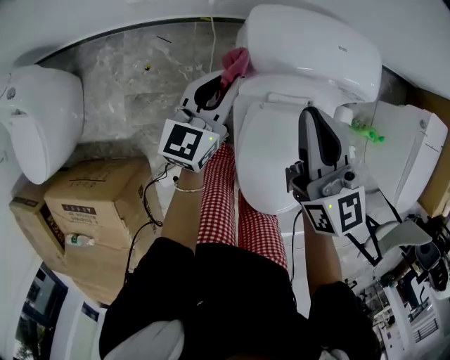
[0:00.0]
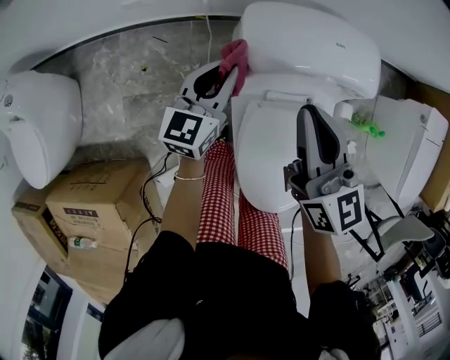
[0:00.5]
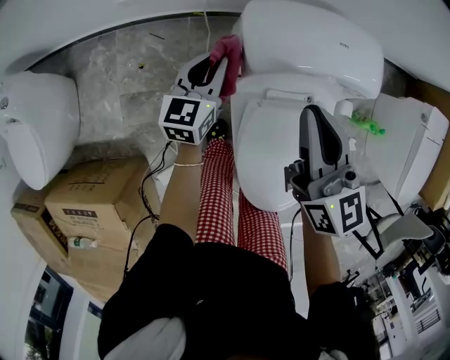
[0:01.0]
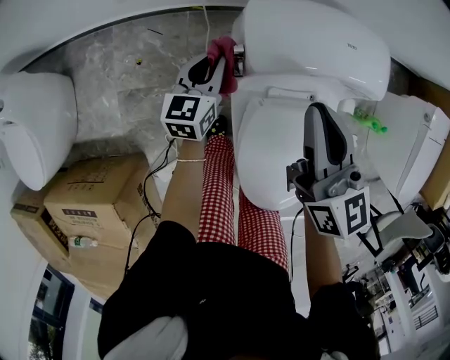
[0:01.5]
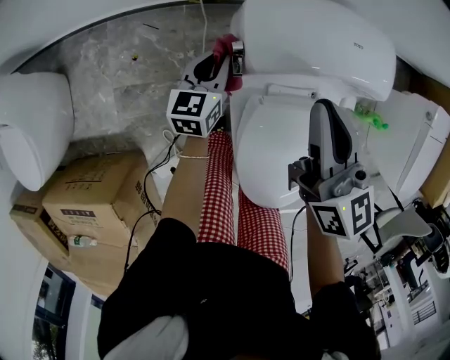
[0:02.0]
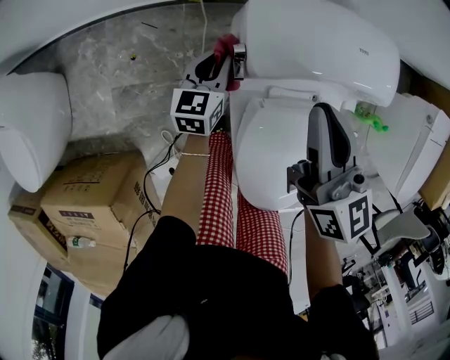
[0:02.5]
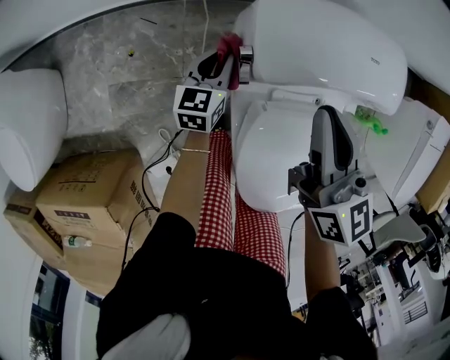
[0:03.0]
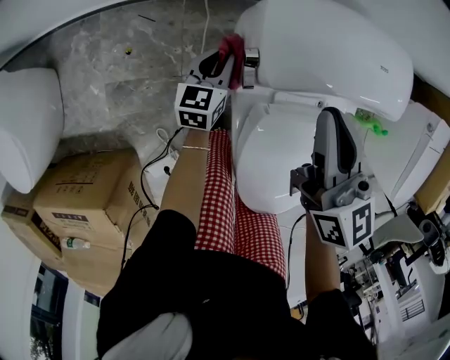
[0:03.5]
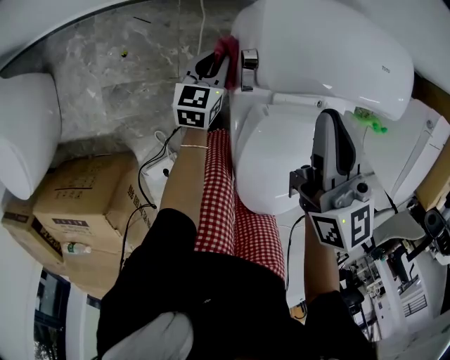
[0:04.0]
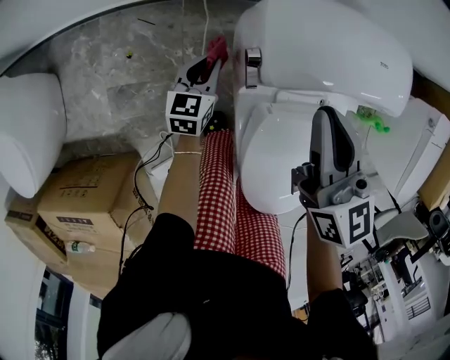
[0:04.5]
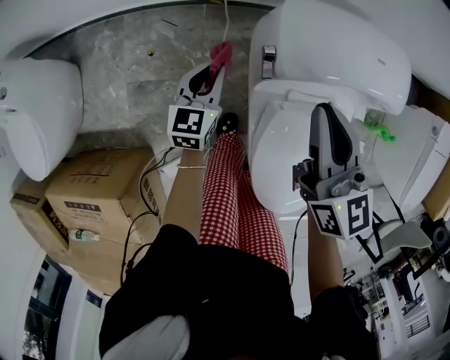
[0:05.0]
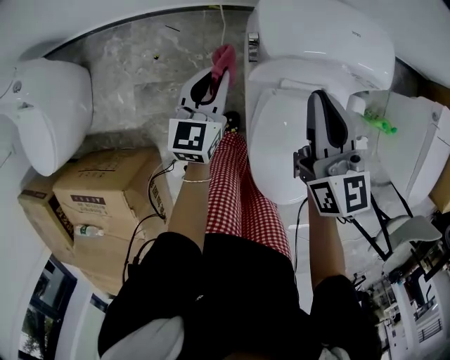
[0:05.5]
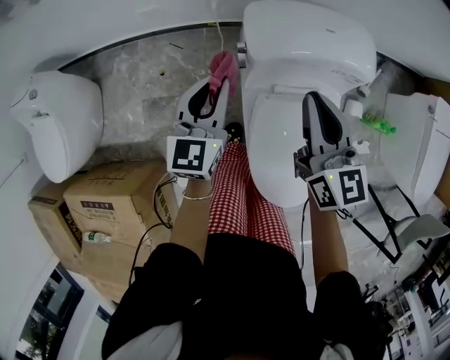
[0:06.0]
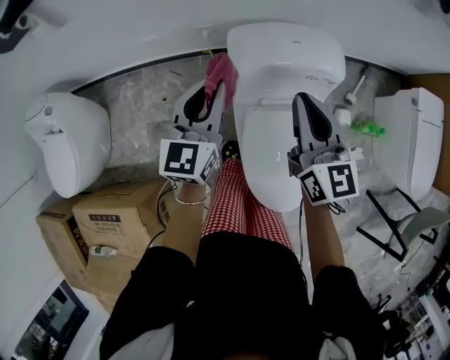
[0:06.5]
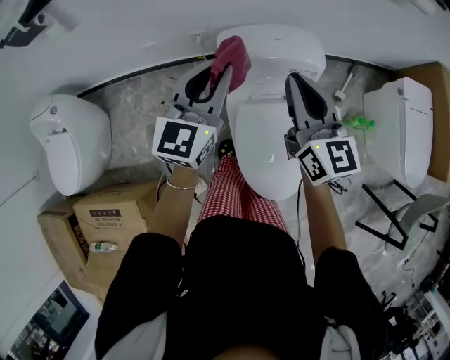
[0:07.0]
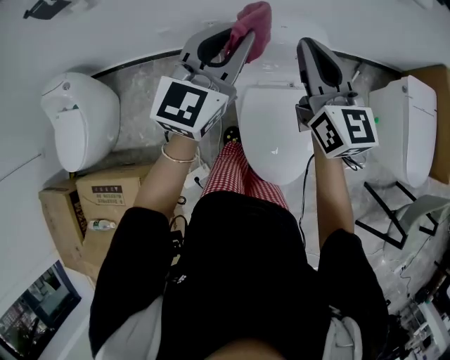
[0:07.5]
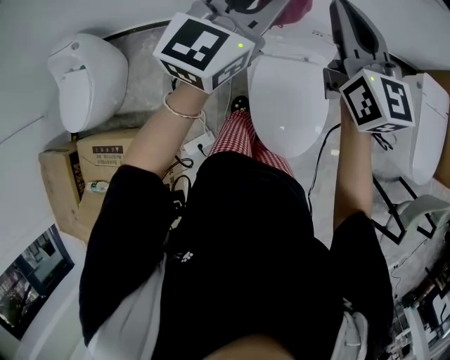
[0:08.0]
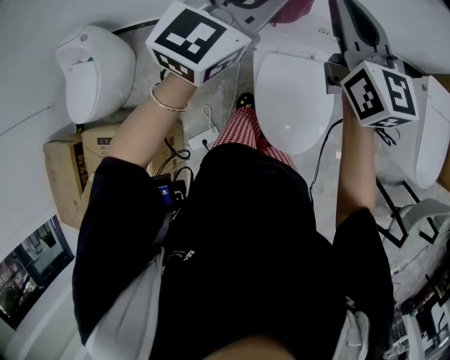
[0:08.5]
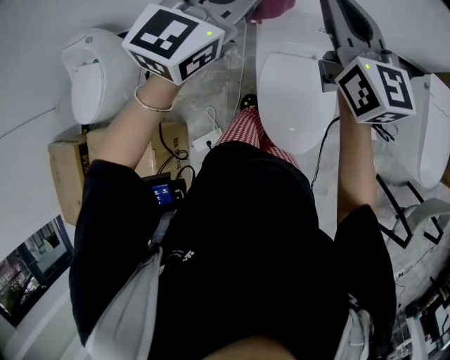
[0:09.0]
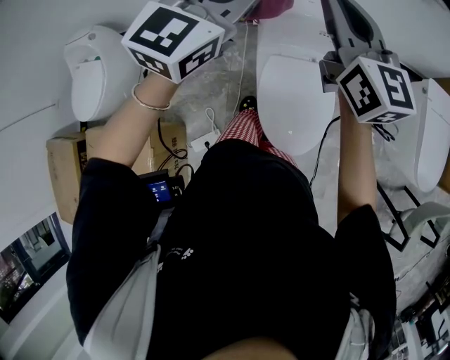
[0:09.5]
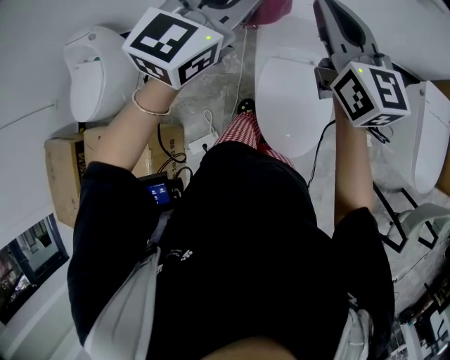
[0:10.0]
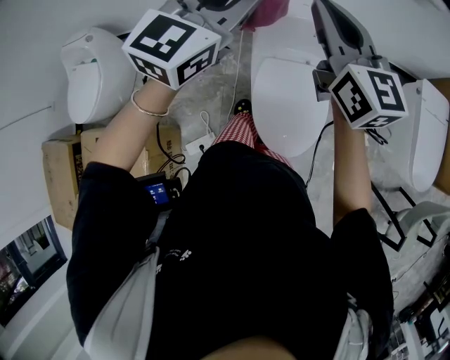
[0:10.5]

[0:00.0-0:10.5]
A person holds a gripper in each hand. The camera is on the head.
0:00.0 to 0:02.0: The right gripper moves some 5 cm, while the left gripper shifts some 15 cm downward.
0:02.0 to 0:04.0: The right gripper moves some 5 cm. The left gripper moves downward, approximately 10 cm.
0:04.0 to 0:06.5: The right gripper is displaced upward and backward by approximately 20 cm. The left gripper goes roughly 40 cm upward, and changes its angle by approximately 30 degrees.
0:06.5 to 0:08.5: The right gripper shifts some 20 cm upward; the left gripper is displaced upward, to the right and backward by about 25 cm, and changes its angle by roughly 30 degrees.
0:08.5 to 0:10.5: The grippers stay close to where they were, moving slightly.

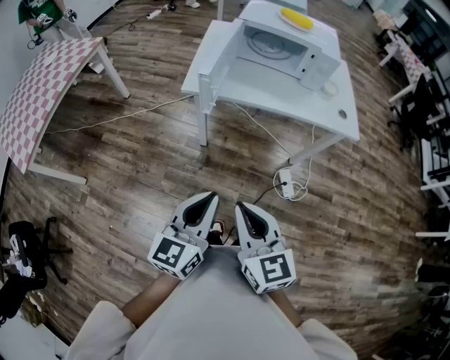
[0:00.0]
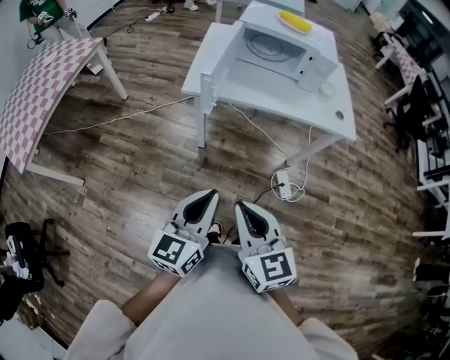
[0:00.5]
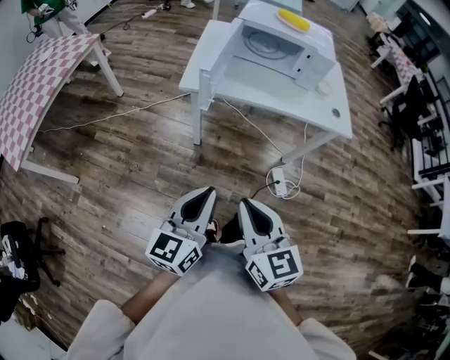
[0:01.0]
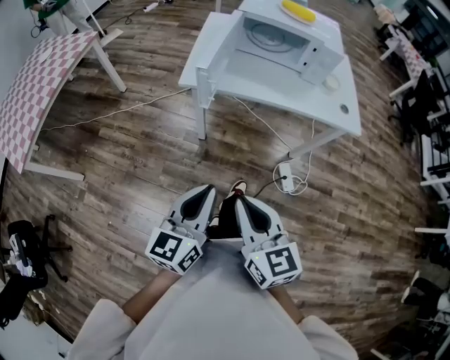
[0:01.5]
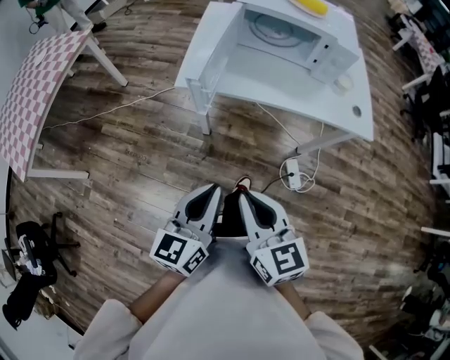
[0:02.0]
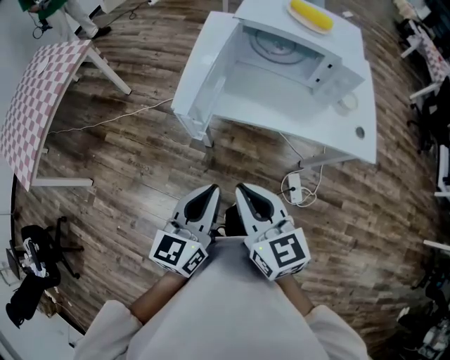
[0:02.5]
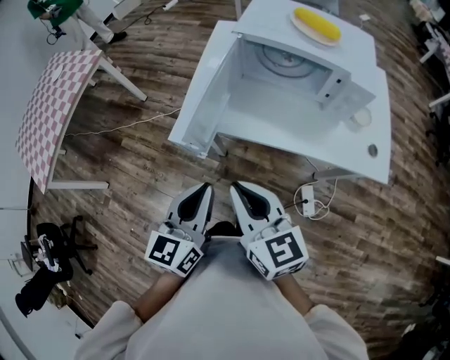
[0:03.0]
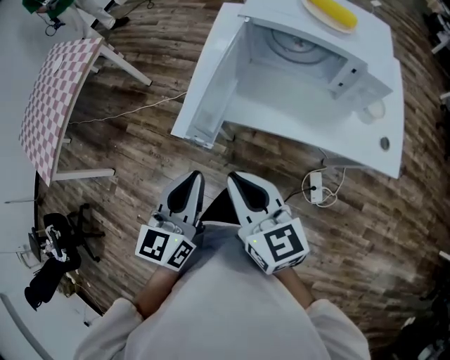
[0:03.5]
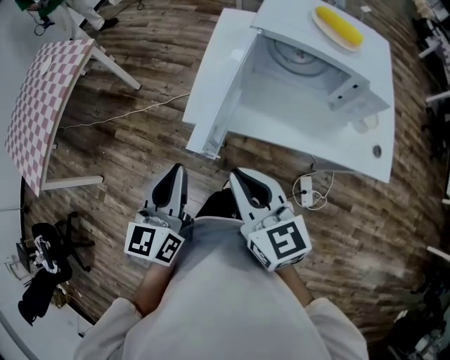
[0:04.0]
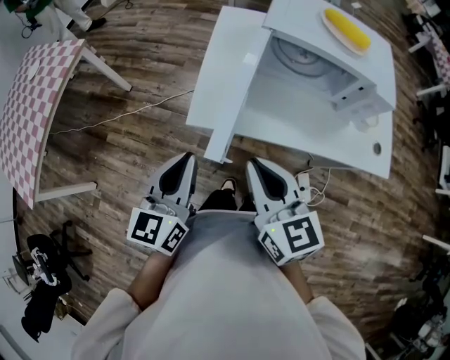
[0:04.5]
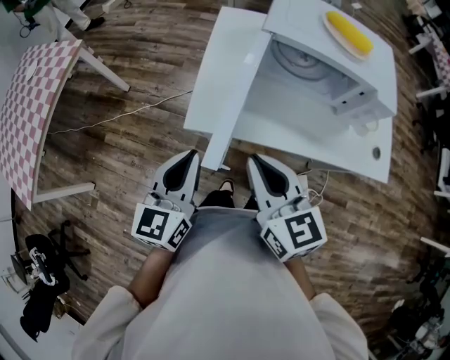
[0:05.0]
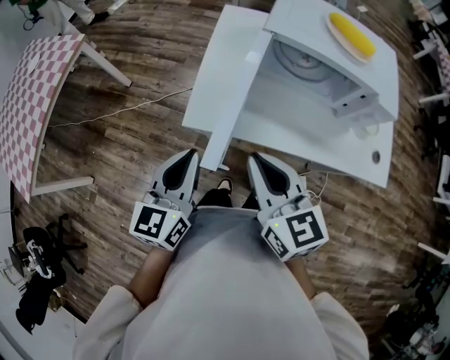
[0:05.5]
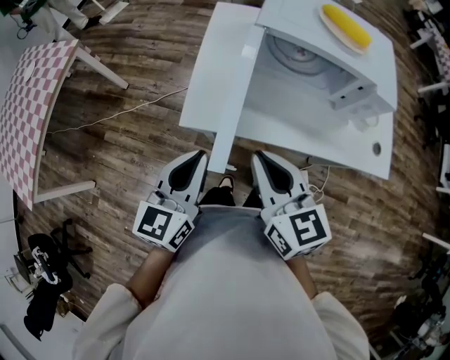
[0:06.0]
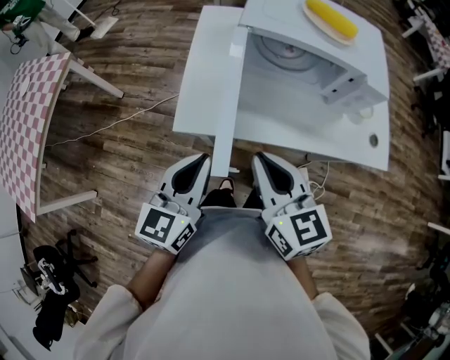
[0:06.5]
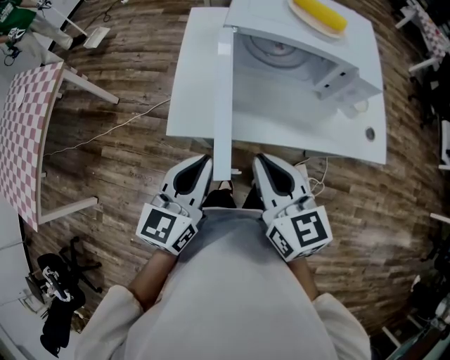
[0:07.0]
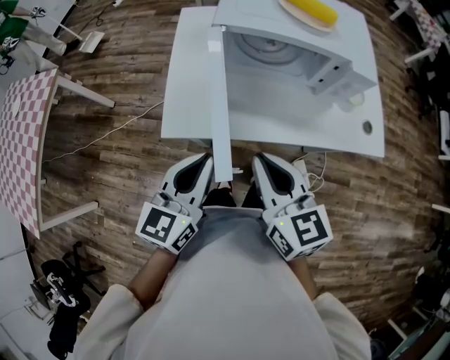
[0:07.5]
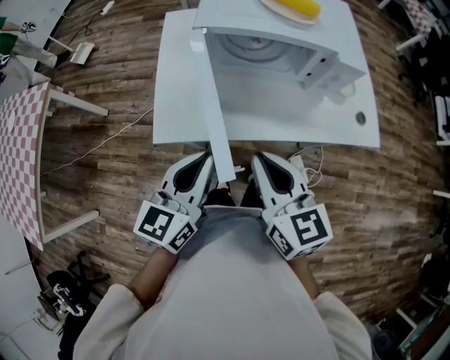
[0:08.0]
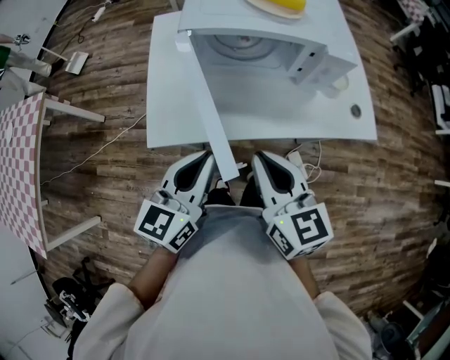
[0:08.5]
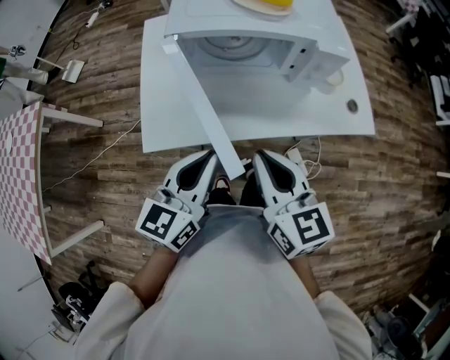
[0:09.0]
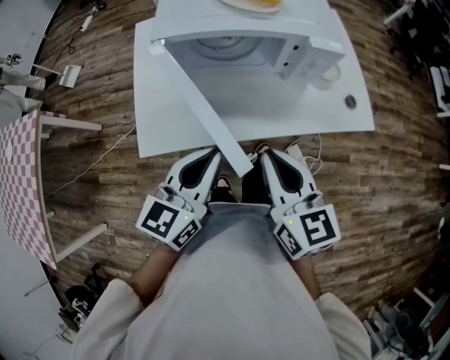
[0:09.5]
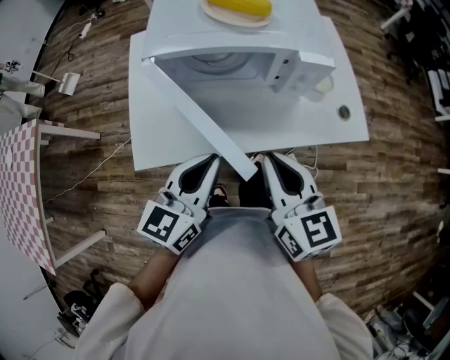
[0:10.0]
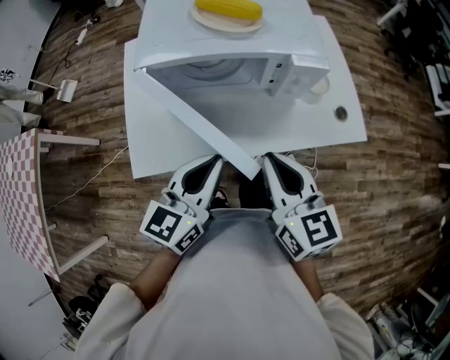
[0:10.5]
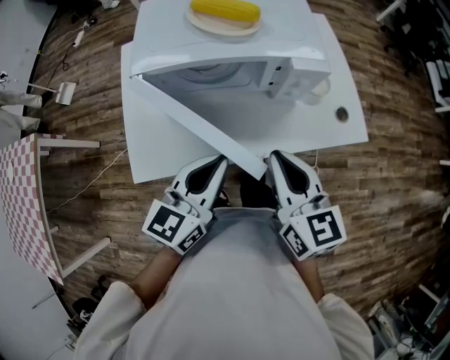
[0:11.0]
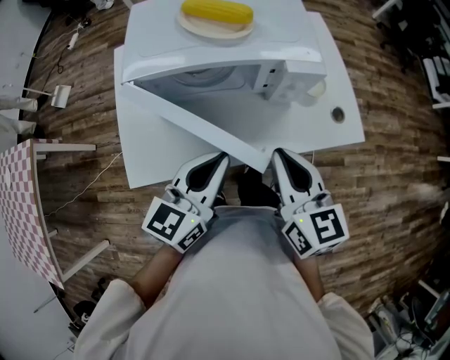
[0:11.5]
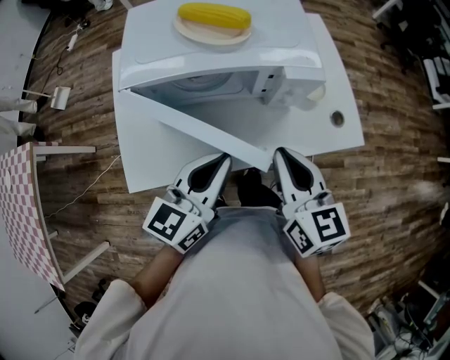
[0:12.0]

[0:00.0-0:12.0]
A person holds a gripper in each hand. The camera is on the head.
0:00.0 to 0:02.0: Both grippers travel together forward, some 10 cm.
0:02.0 to 0:04.0: Both grippers move forward, some 20 cm.
0:04.0 to 0:06.0: The two grippers go some 5 cm forward.
0:06.0 to 0:08.0: The grippers both shift to the right by about 10 cm.
0:08.0 to 0:10.0: The grippers both shift to the right and forward by approximately 10 cm.
0:10.0 to 0:12.0: Both grippers move forward, some 5 cm.

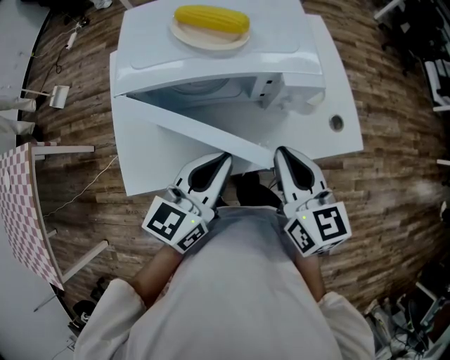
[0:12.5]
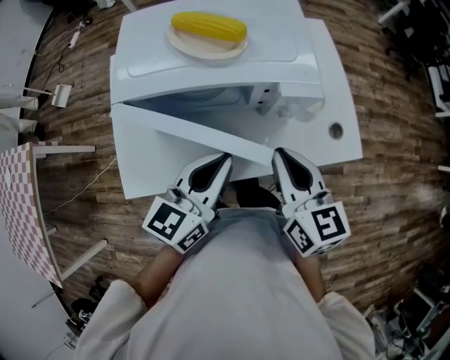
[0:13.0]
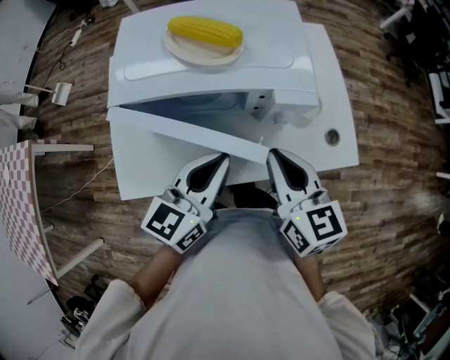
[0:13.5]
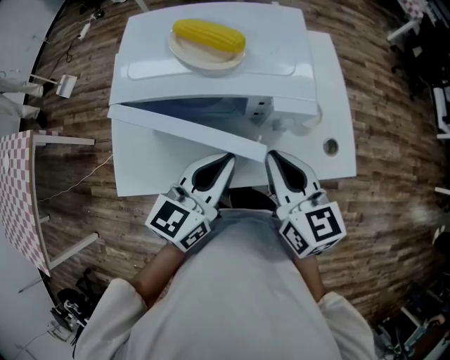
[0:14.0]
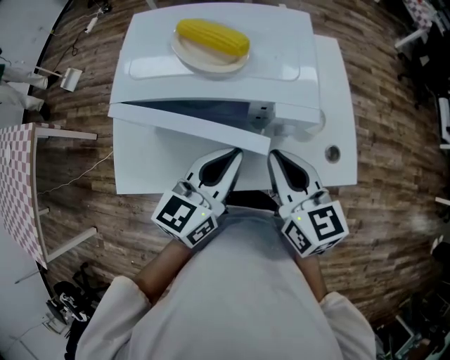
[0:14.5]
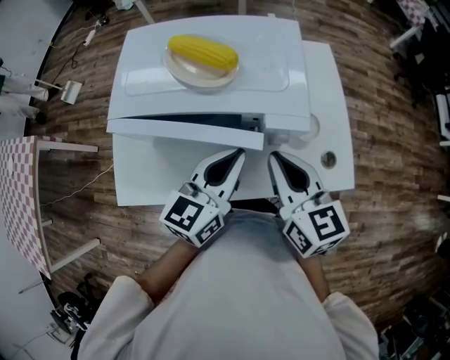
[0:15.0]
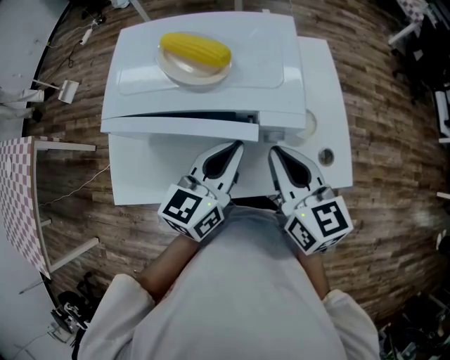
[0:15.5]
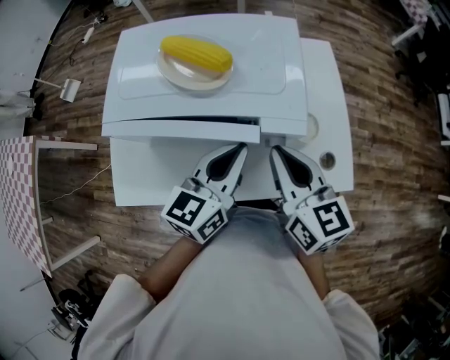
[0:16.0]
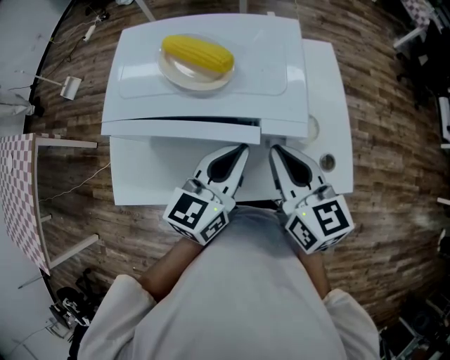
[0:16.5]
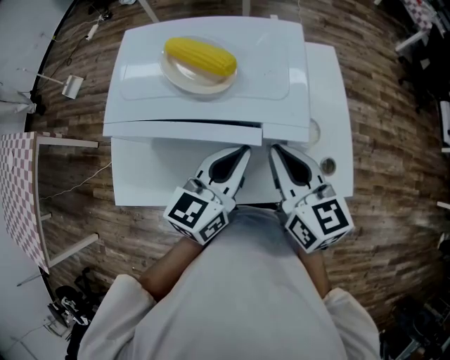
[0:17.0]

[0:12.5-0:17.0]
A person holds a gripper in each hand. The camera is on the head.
0:12.5 to 0:14.5: Both grippers move forward, about 5 cm.
0:14.5 to 0:17.0: The left gripper ends up about 5 cm from where it was. The right gripper moves approximately 5 cm.
